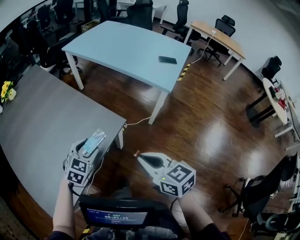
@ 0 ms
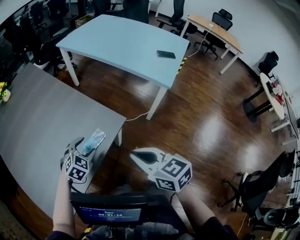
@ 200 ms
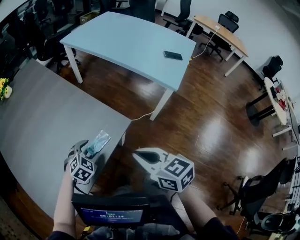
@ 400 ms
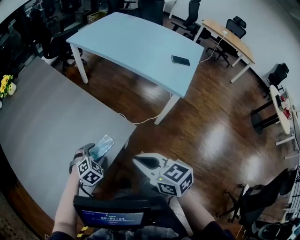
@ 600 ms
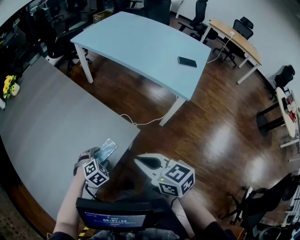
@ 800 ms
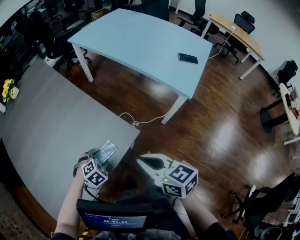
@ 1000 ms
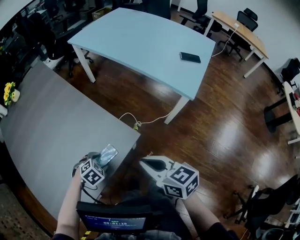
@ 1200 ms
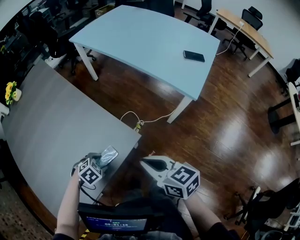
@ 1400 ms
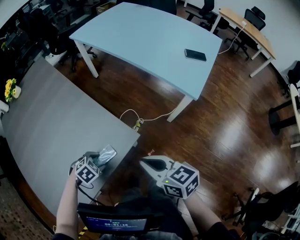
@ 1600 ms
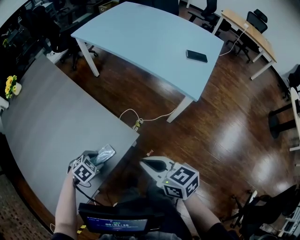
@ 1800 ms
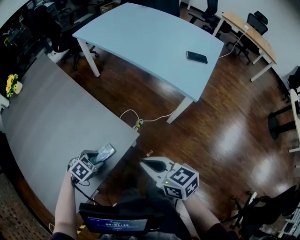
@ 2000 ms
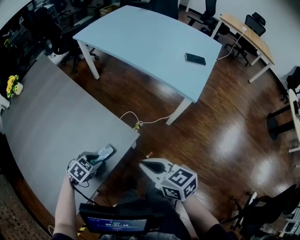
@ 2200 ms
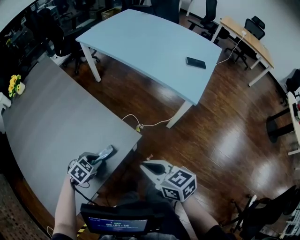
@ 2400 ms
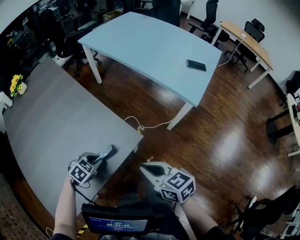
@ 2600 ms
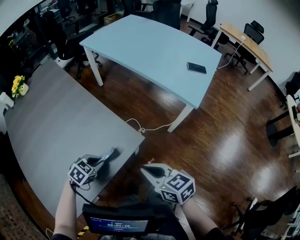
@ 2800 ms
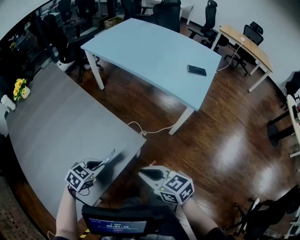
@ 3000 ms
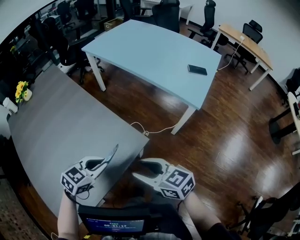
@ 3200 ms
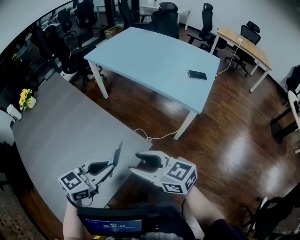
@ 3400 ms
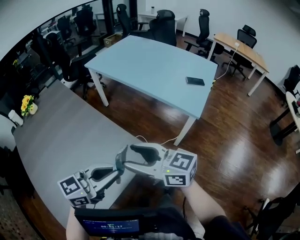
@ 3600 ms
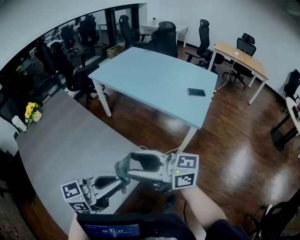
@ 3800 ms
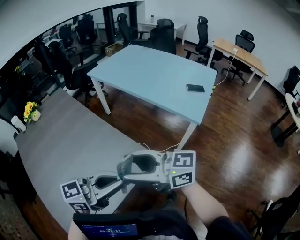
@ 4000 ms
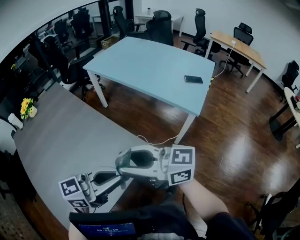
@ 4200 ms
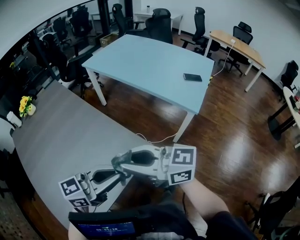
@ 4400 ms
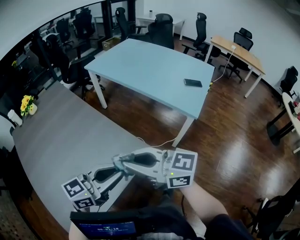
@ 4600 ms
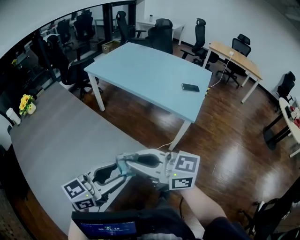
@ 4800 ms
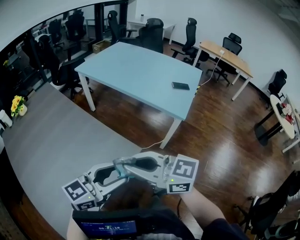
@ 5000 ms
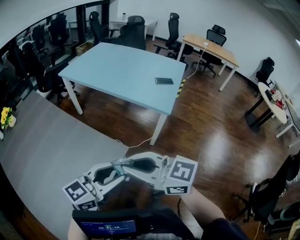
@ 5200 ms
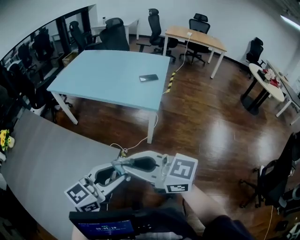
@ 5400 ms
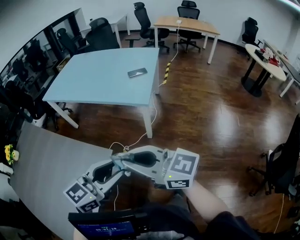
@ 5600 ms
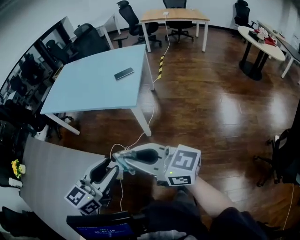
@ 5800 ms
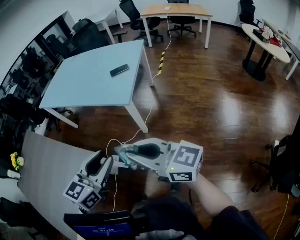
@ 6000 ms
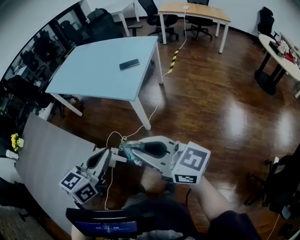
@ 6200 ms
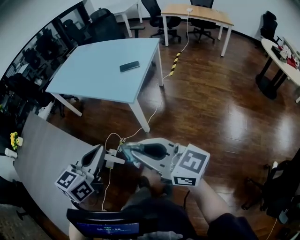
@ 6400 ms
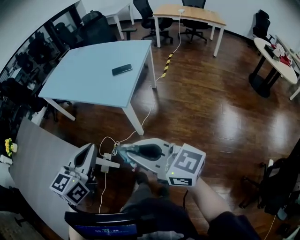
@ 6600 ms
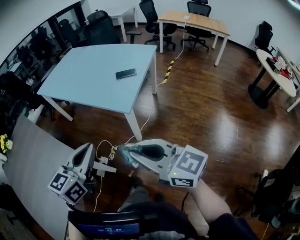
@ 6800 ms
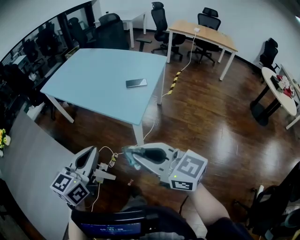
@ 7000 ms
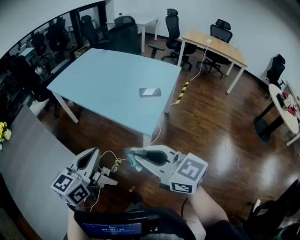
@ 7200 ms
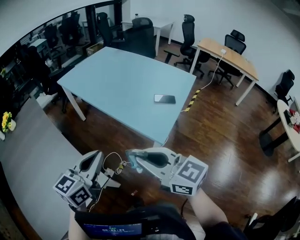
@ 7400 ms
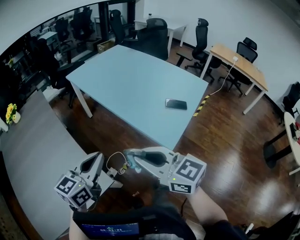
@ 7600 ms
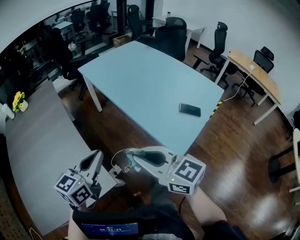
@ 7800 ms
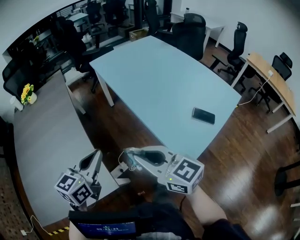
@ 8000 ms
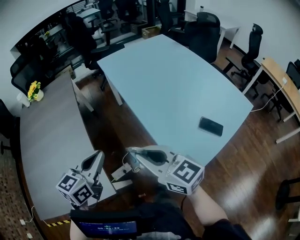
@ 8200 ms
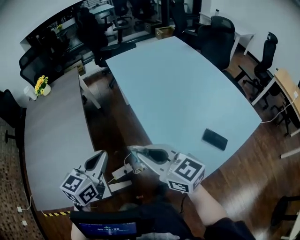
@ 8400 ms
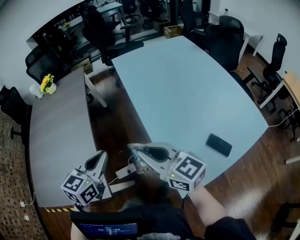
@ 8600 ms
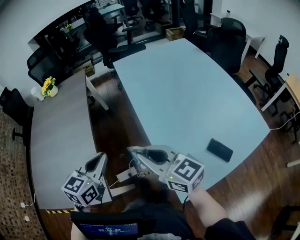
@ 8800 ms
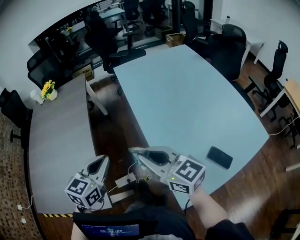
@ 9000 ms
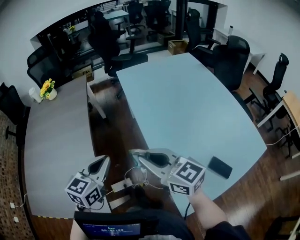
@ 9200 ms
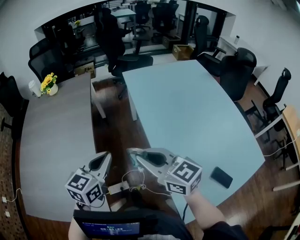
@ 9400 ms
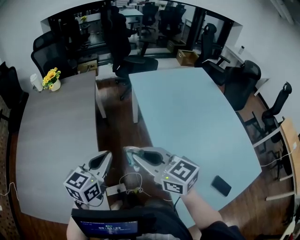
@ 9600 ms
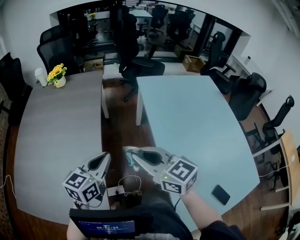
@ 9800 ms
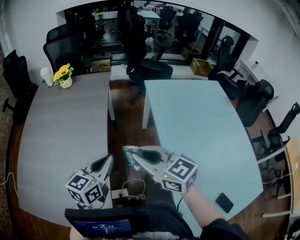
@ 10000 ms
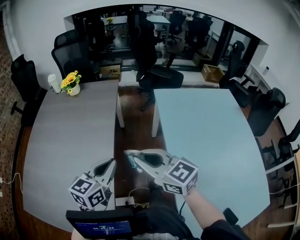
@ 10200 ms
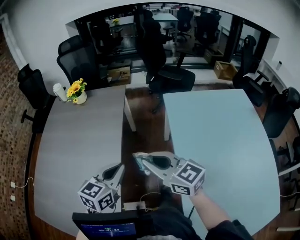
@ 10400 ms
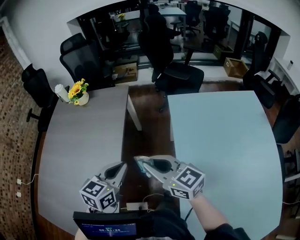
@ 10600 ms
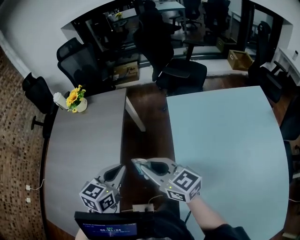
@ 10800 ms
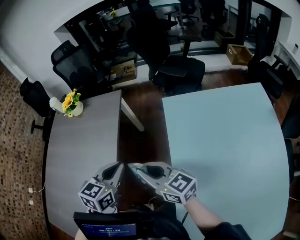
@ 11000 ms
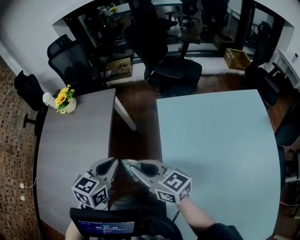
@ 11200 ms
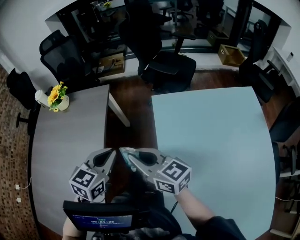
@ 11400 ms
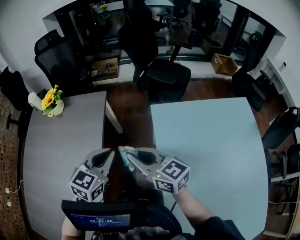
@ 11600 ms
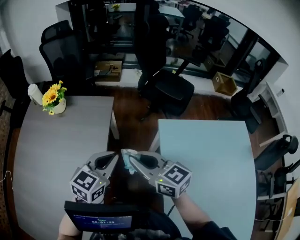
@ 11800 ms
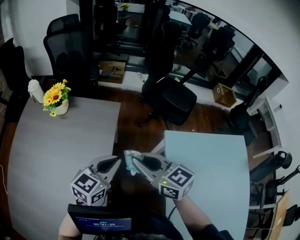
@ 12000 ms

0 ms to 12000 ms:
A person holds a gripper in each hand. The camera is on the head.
0 ms to 1600 ms: The right gripper moves approximately 15 cm; the left gripper travels downward by approximately 15 cm, and points its fingers roughly 40 degrees further downward.
1600 ms to 3000 ms: The left gripper shifts some 10 cm upward, swivels approximately 30 degrees, and closes its fingers, while the right gripper changes place by approximately 5 cm.
3000 ms to 4400 ms: Both grippers travel together upward, about 20 cm. The right gripper tilts its fingers some 30 degrees upward, and opens and closes again. The left gripper points its fingers some 50 degrees further upward.
4400 ms to 6000 ms: The right gripper moves approximately 40 cm, and turns by about 30 degrees, while the left gripper moves roughly 30 cm, and turns by roughly 20 degrees.
6000 ms to 7600 ms: The grippers both shift forward and to the left by about 30 cm. The right gripper changes its angle by approximately 20 degrees. The left gripper changes its angle by approximately 30 degrees, and closes.
7600 ms to 9000 ms: The right gripper moves roughly 25 cm, and rotates roughly 30 degrees. Meanwhile the left gripper changes place by some 20 cm, and changes its angle by roughly 40 degrees.
9000 ms to 10400 ms: The two grippers go roughly 30 cm forward.
10400 ms to 12000 ms: Both grippers move forward, about 30 cm.

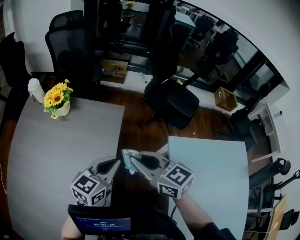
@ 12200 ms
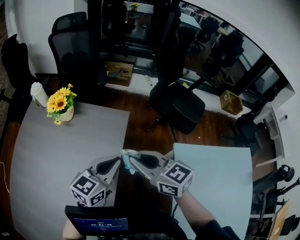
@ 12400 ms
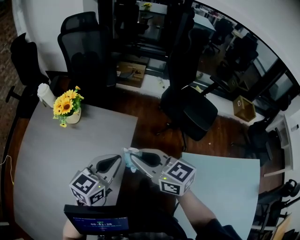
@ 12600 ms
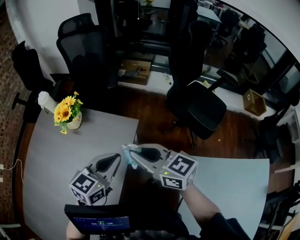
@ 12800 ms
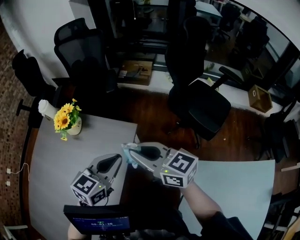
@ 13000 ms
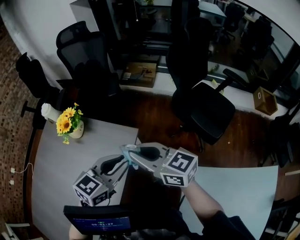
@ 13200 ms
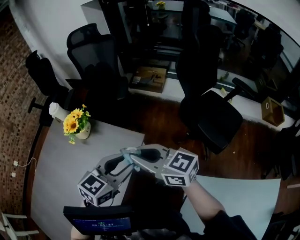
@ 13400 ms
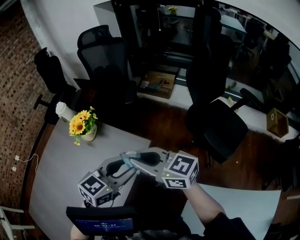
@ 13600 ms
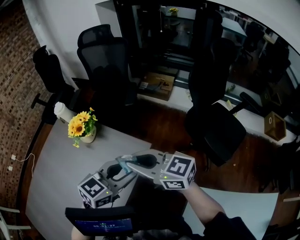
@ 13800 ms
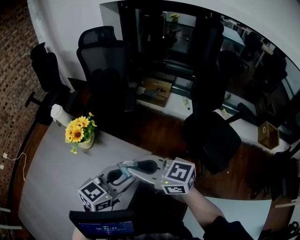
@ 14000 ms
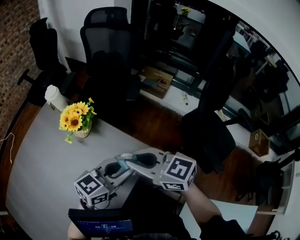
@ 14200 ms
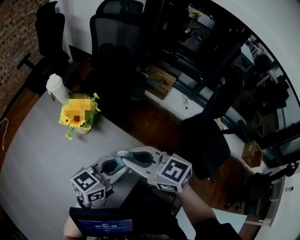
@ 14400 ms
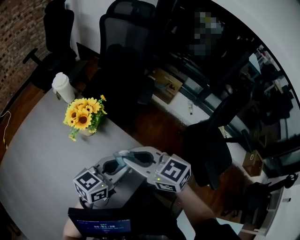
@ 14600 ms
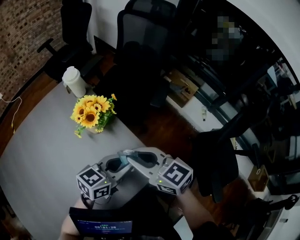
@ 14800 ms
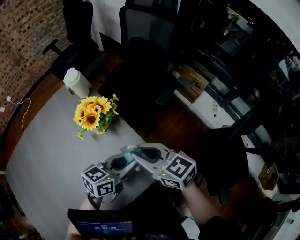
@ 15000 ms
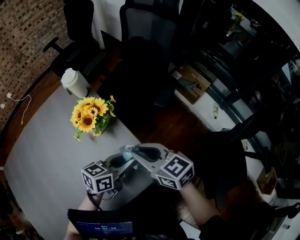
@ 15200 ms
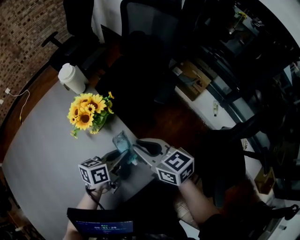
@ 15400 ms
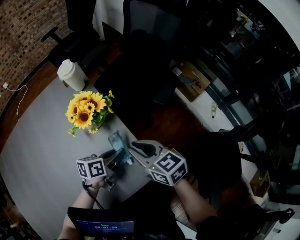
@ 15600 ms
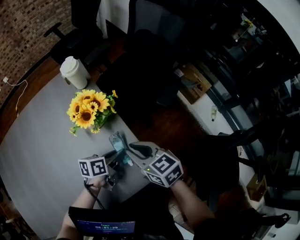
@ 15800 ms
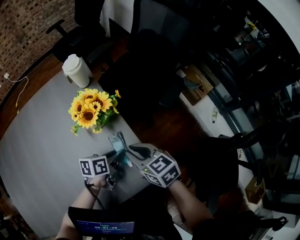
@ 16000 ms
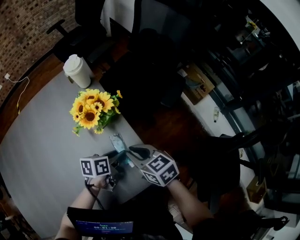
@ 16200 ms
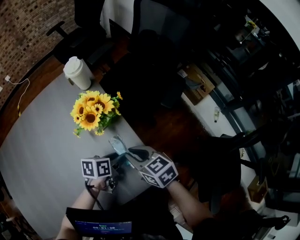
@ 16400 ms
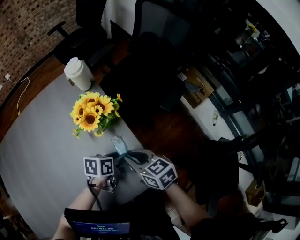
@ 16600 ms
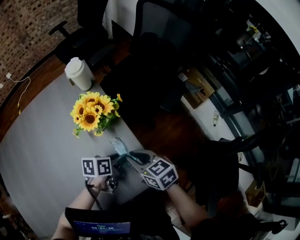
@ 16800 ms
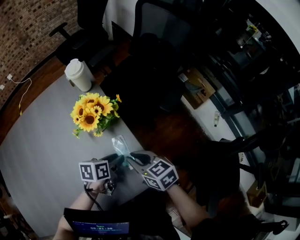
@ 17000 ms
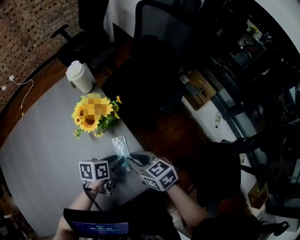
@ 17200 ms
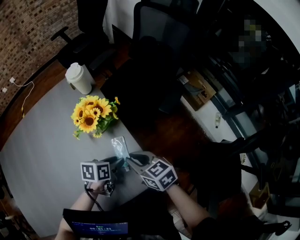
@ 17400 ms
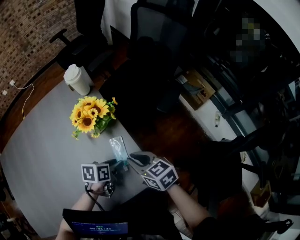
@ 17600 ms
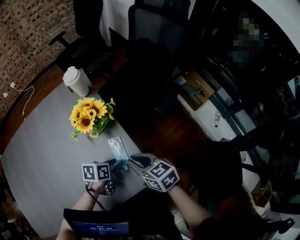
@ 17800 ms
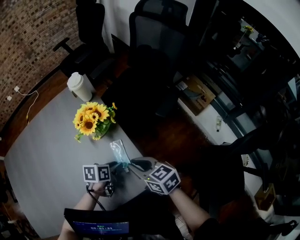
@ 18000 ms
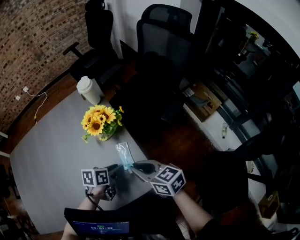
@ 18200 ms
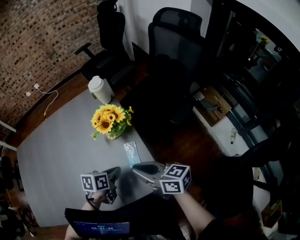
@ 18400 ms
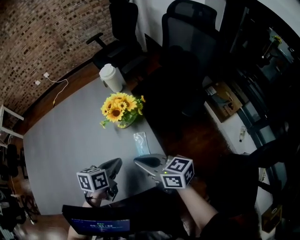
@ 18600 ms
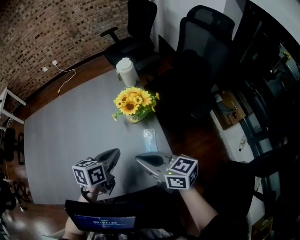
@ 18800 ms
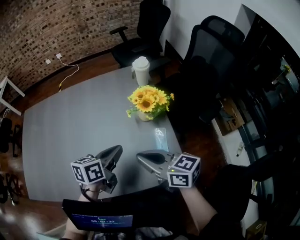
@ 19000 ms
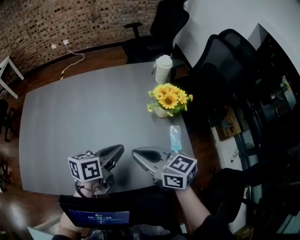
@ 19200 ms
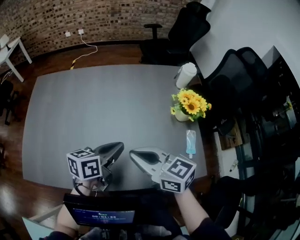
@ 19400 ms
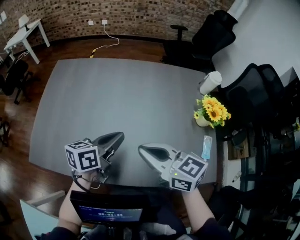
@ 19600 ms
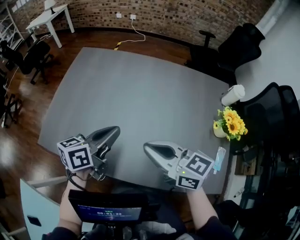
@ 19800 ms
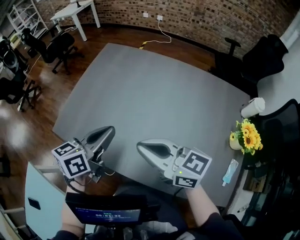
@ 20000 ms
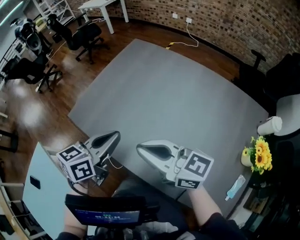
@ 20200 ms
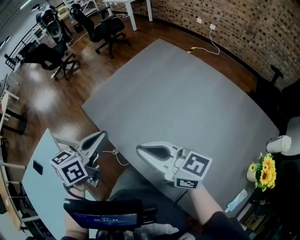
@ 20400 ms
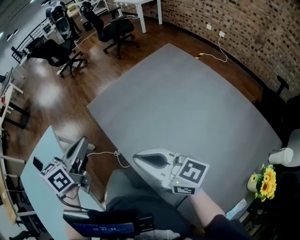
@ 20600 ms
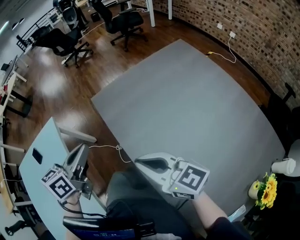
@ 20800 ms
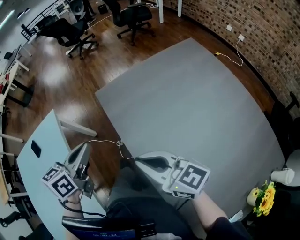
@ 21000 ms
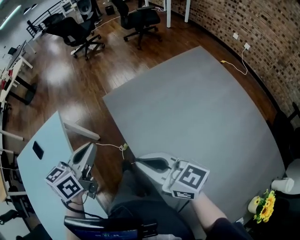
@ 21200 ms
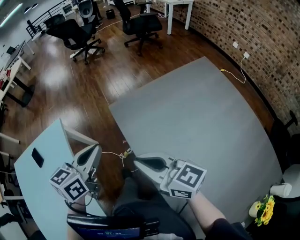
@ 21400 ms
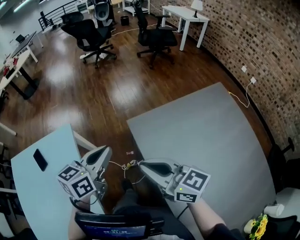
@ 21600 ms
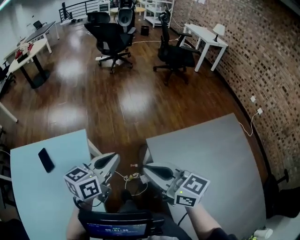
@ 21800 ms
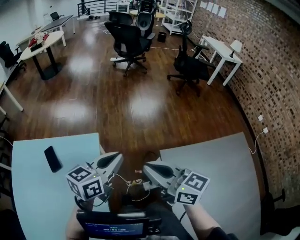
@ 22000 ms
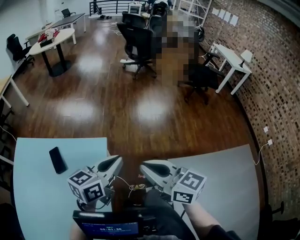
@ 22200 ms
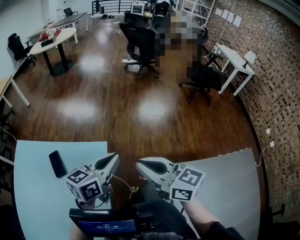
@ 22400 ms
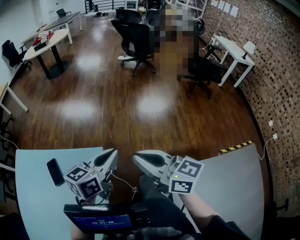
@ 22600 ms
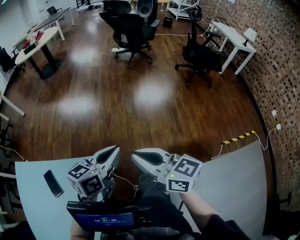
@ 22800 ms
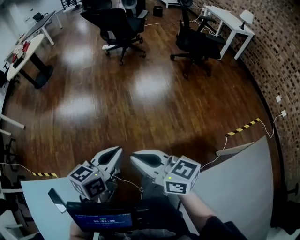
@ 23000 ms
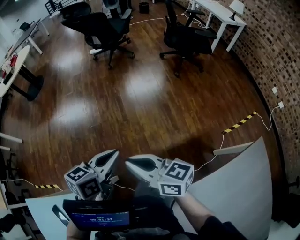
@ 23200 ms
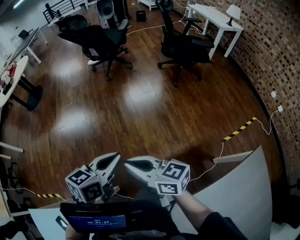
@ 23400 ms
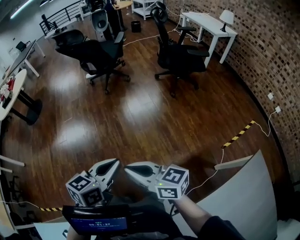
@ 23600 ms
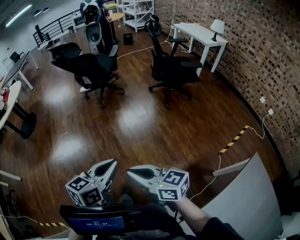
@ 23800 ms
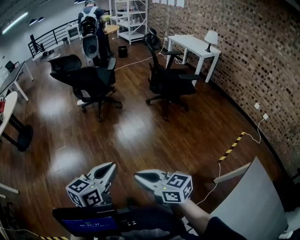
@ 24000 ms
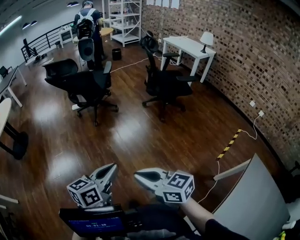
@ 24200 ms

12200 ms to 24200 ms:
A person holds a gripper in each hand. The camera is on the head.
12200 ms to 13800 ms: The left gripper travels forward and to the right by some 20 cm, and opens up. The right gripper moves forward, approximately 20 cm, and turns by about 40 degrees.
13800 ms to 15200 ms: Both grippers move forward and downward, some 25 cm. The left gripper rolls counterclockwise, seen from behind, by some 40 degrees. The right gripper rotates some 20 degrees.
15200 ms to 16600 ms: The left gripper heads downward and to the left, covering approximately 10 cm, and swivels approximately 30 degrees. Meanwhile the right gripper heads downward, covering some 10 cm.
16600 ms to 18200 ms: The right gripper moves about 5 cm.
18200 ms to 19800 ms: Both grippers are carried about 50 cm. The left gripper points its fingers about 30 degrees further upward, and closes up. Meanwhile the right gripper turns by some 40 degrees.
19800 ms to 21200 ms: The right gripper ends up some 25 cm from where it was, and changes its angle by about 50 degrees; the left gripper moves some 35 cm, and swivels approximately 60 degrees.
21200 ms to 22600 ms: Both grippers are carried forward and to the left, roughly 50 cm. The right gripper turns by approximately 20 degrees.
22600 ms to 24200 ms: Both grippers are carried roughly 50 cm. The left gripper changes its angle by approximately 30 degrees; the right gripper turns by about 30 degrees.
